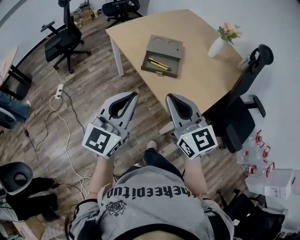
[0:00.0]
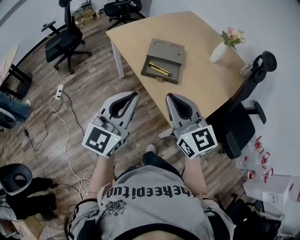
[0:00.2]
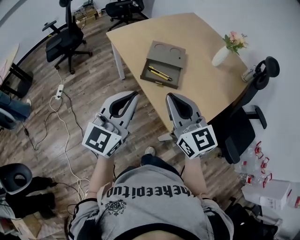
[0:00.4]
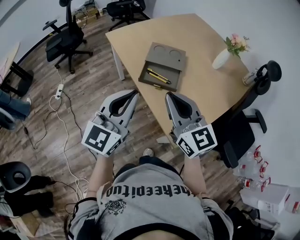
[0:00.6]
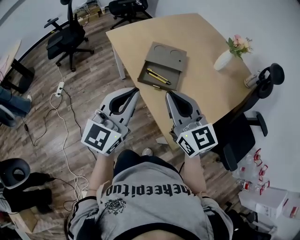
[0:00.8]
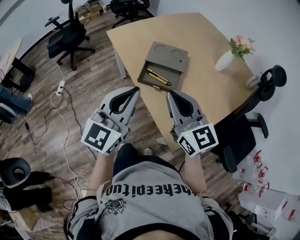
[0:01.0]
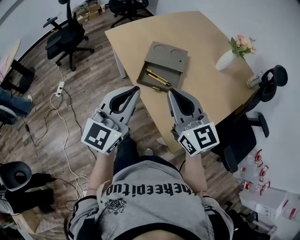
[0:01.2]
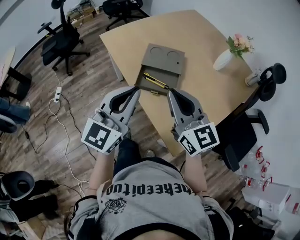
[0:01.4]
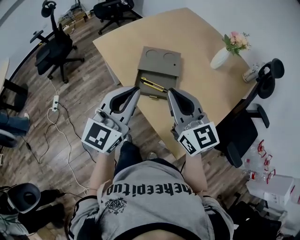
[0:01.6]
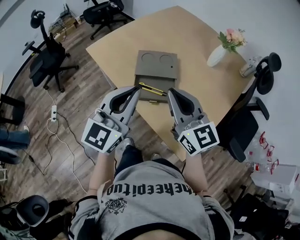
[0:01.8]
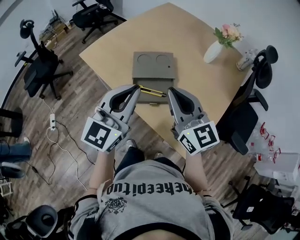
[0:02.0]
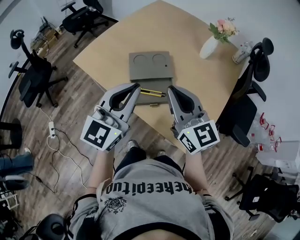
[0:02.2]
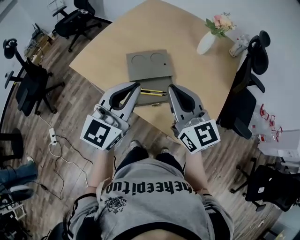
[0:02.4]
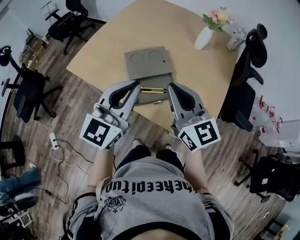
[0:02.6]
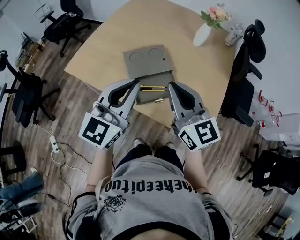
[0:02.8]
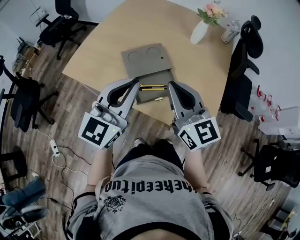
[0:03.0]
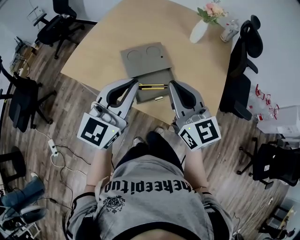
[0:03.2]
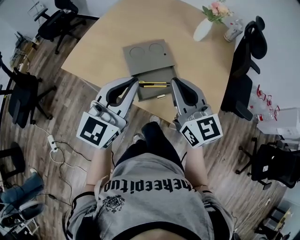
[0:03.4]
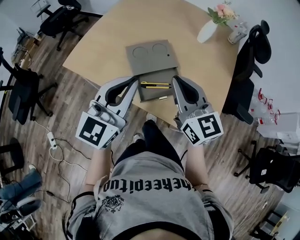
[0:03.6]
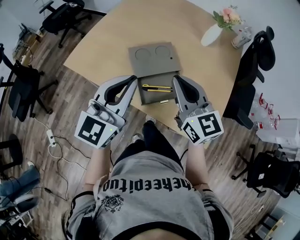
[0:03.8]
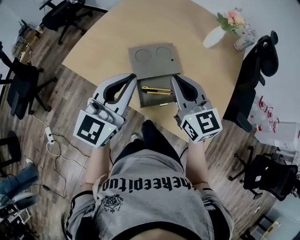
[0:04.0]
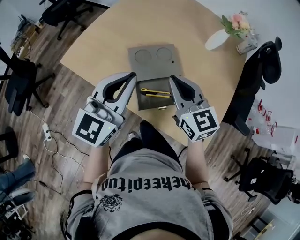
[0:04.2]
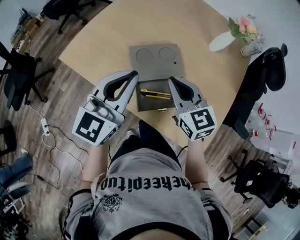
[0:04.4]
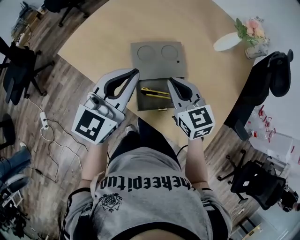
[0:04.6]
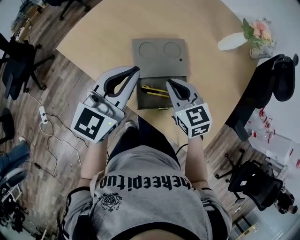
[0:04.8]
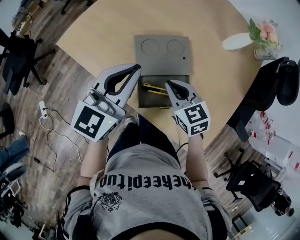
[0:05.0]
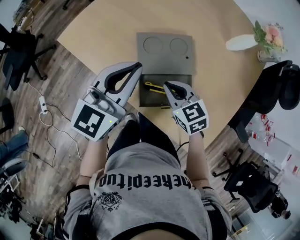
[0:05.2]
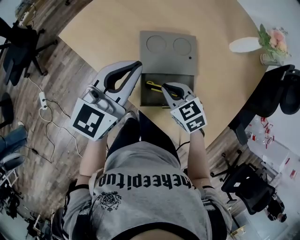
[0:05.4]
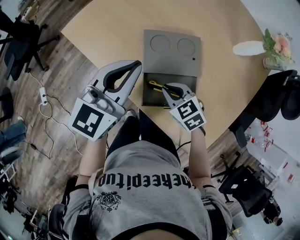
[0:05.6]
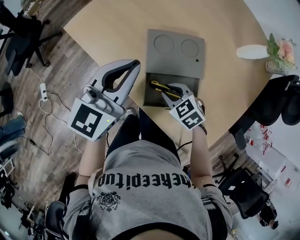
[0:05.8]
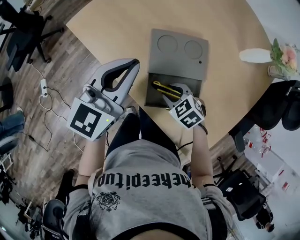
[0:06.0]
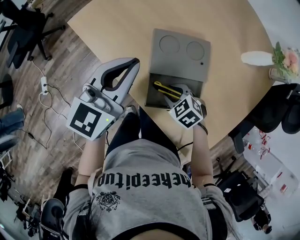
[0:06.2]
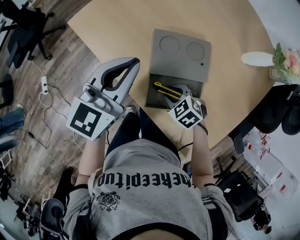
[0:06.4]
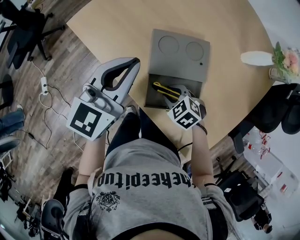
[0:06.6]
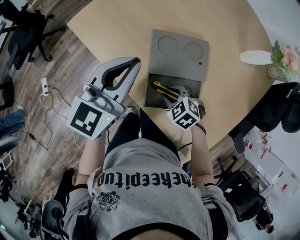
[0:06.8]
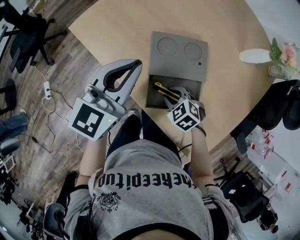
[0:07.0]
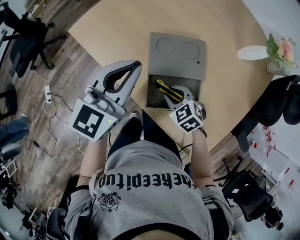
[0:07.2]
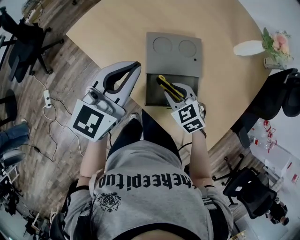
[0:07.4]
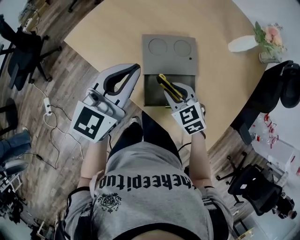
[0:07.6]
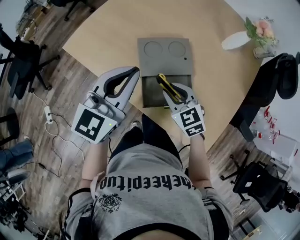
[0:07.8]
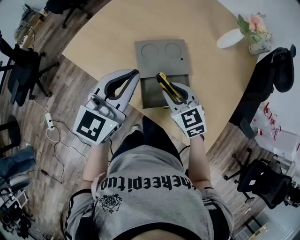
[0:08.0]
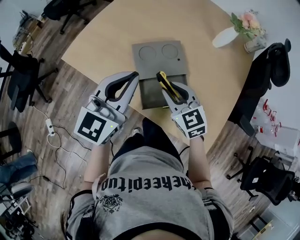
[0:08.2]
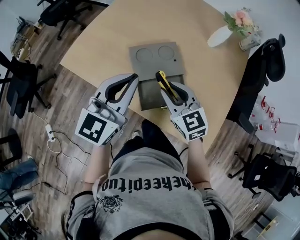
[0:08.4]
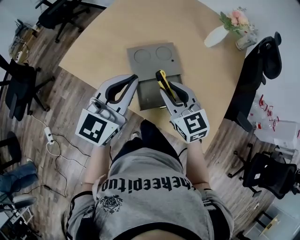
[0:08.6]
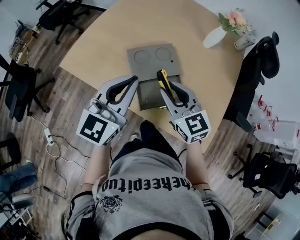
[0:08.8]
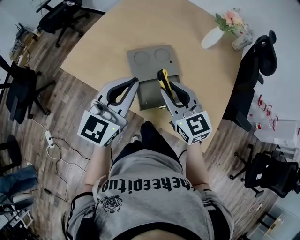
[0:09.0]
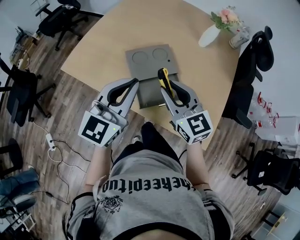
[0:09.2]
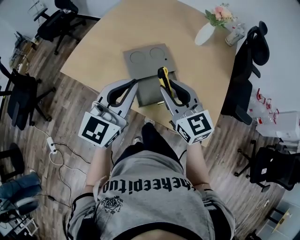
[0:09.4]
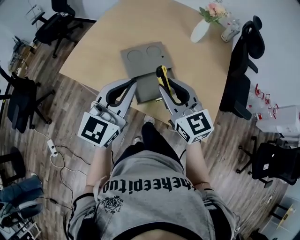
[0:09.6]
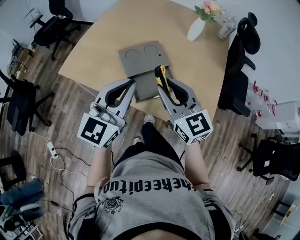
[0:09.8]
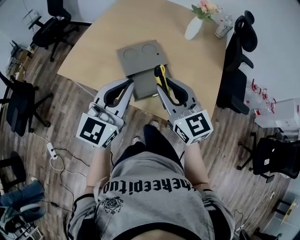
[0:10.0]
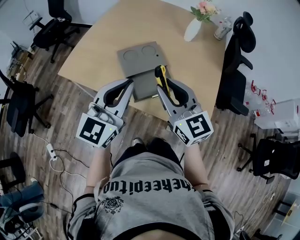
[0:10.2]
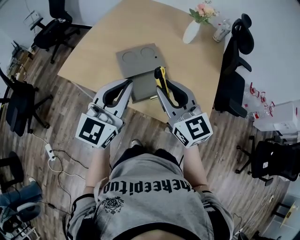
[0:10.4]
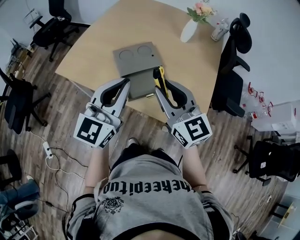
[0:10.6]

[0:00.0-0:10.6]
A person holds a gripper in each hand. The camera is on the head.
0:00.0 to 0:01.6: Both grippers travel together forward, approximately 20 cm.
0:01.6 to 0:03.0: The right gripper shifts by some 10 cm, and changes its angle by some 30 degrees; the left gripper moves roughly 15 cm, and rotates approximately 30 degrees.
0:03.0 to 0:04.6: The right gripper shifts approximately 20 cm forward and downward, and rotates approximately 30 degrees. The left gripper moves forward, some 10 cm.
0:04.6 to 0:06.0: The left gripper travels downward by roughly 5 cm. The right gripper heads downward, covering about 20 cm, tilts its fingers approximately 30 degrees downward, and opens up.
0:06.0 to 0:07.6: The right gripper goes some 5 cm upward, and rotates some 20 degrees.
0:07.6 to 0:09.0: The right gripper is displaced upward by approximately 15 cm, and swivels about 30 degrees. Meanwhile the left gripper travels backward by about 5 cm.
0:09.0 to 0:10.6: The right gripper is displaced backward and upward by some 10 cm, while the left gripper travels backward by some 10 cm.

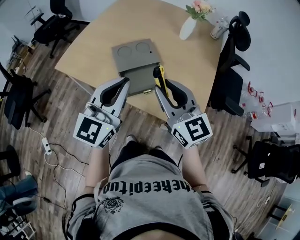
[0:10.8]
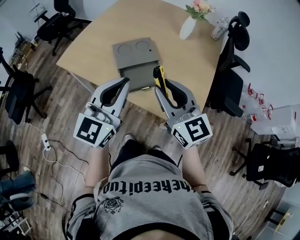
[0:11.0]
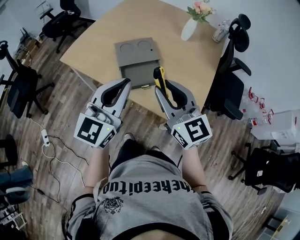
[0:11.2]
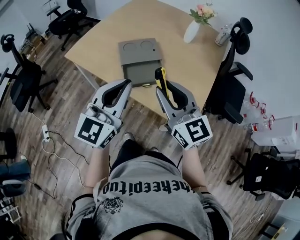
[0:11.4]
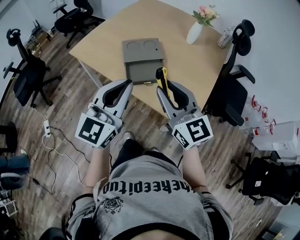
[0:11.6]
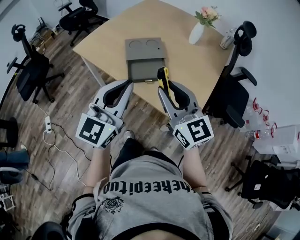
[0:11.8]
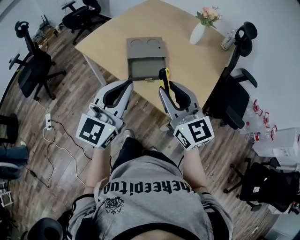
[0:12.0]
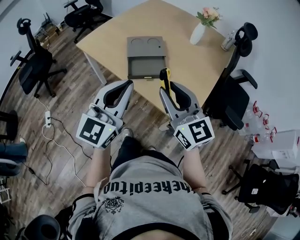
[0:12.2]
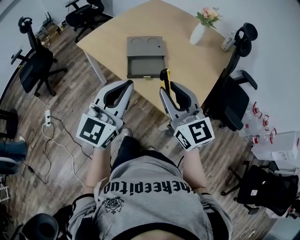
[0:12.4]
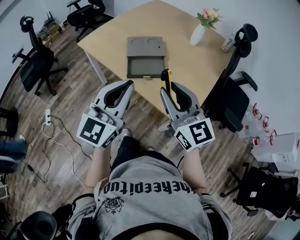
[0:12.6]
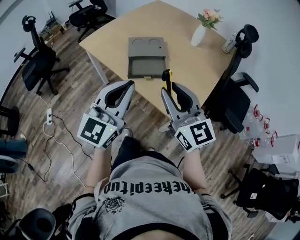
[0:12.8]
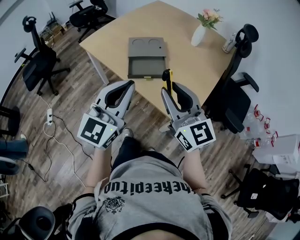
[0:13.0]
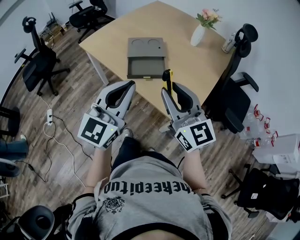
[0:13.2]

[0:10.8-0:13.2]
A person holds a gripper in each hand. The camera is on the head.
0:10.8 to 0:12.0: Both grippers travel together backward, approximately 10 cm.
0:12.0 to 0:13.2: The grippers stay close to where they were, moving slightly.

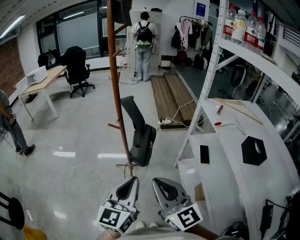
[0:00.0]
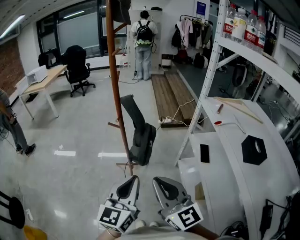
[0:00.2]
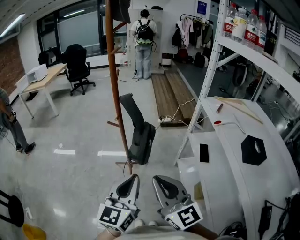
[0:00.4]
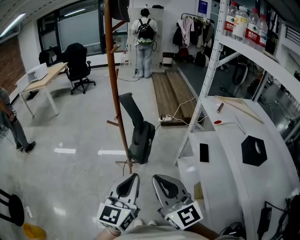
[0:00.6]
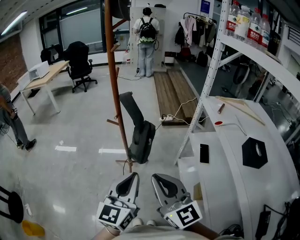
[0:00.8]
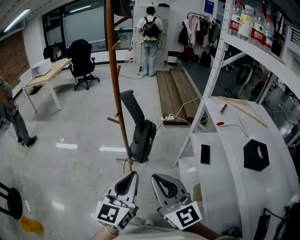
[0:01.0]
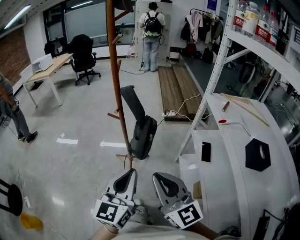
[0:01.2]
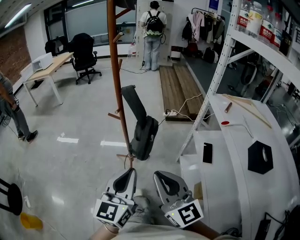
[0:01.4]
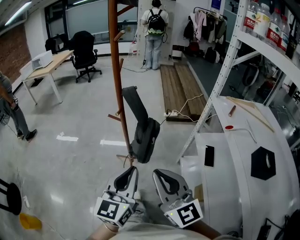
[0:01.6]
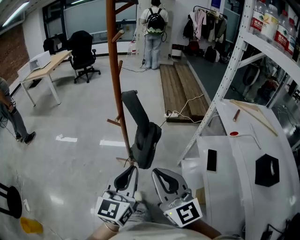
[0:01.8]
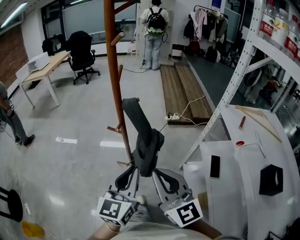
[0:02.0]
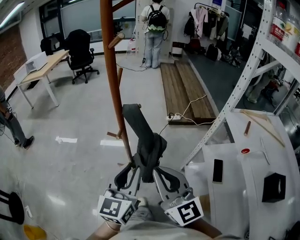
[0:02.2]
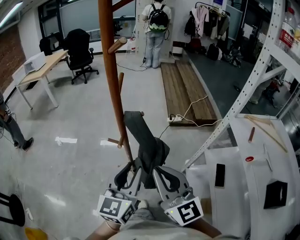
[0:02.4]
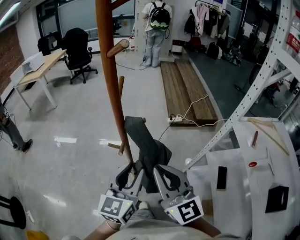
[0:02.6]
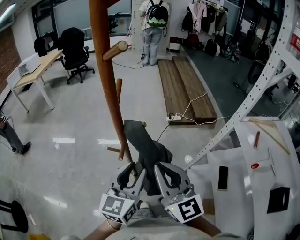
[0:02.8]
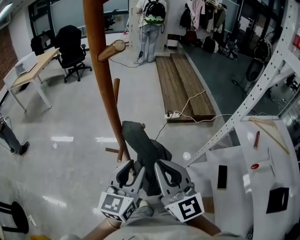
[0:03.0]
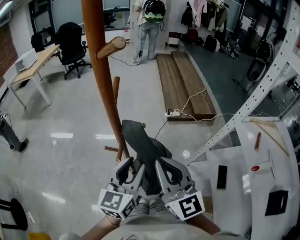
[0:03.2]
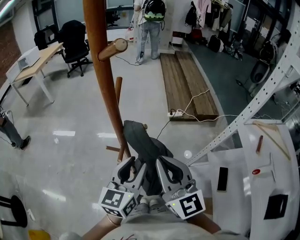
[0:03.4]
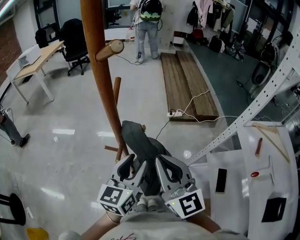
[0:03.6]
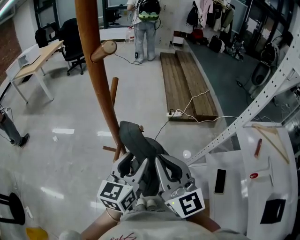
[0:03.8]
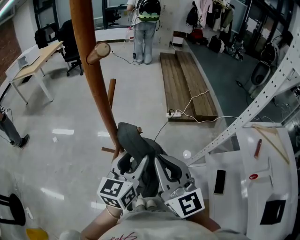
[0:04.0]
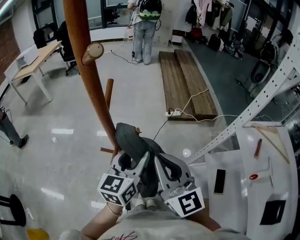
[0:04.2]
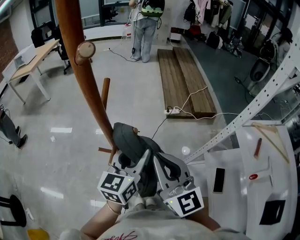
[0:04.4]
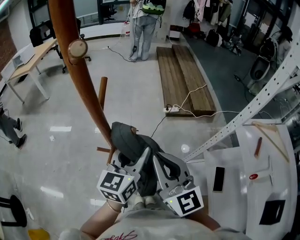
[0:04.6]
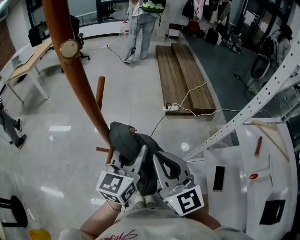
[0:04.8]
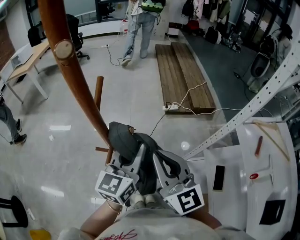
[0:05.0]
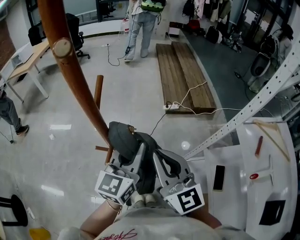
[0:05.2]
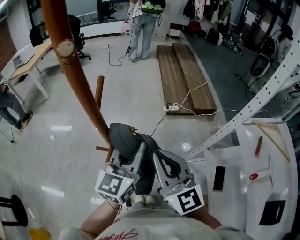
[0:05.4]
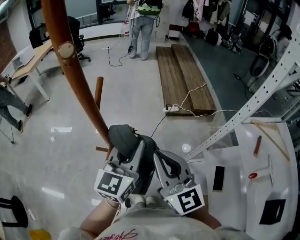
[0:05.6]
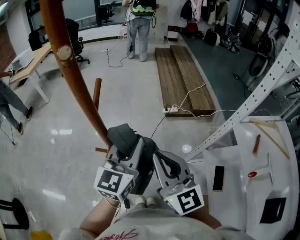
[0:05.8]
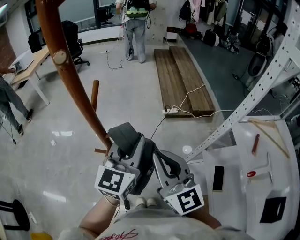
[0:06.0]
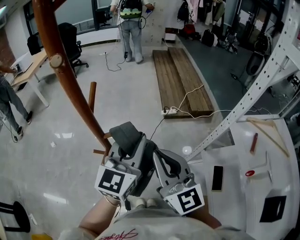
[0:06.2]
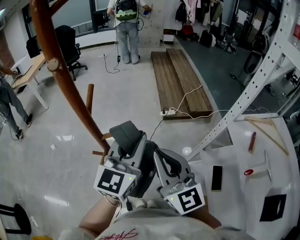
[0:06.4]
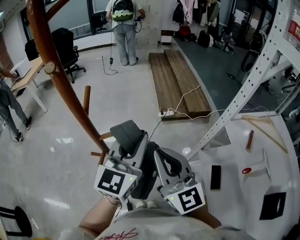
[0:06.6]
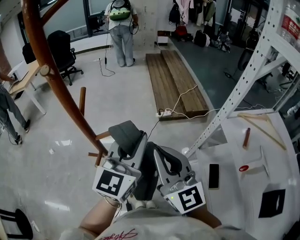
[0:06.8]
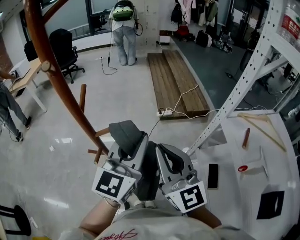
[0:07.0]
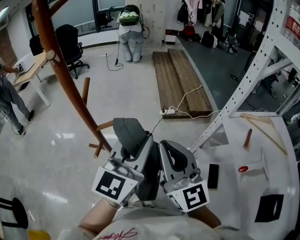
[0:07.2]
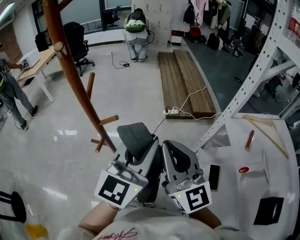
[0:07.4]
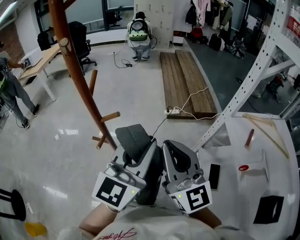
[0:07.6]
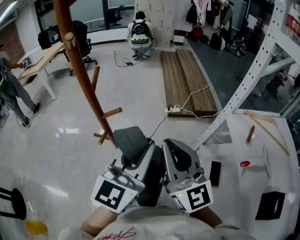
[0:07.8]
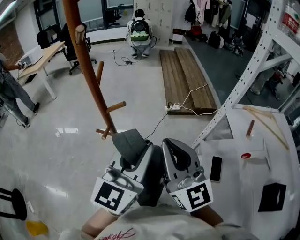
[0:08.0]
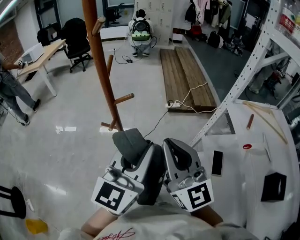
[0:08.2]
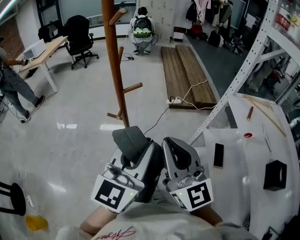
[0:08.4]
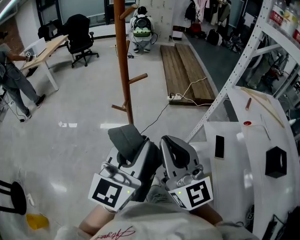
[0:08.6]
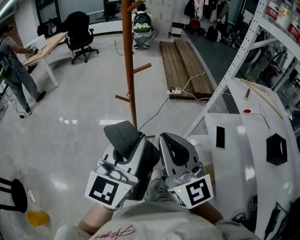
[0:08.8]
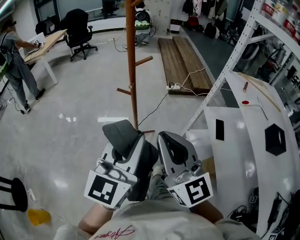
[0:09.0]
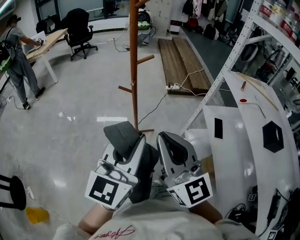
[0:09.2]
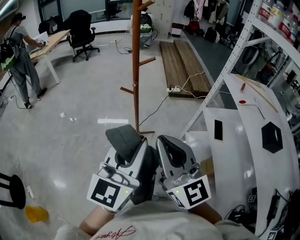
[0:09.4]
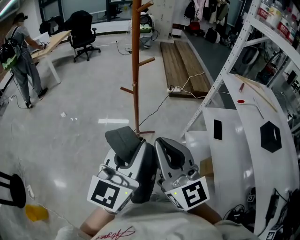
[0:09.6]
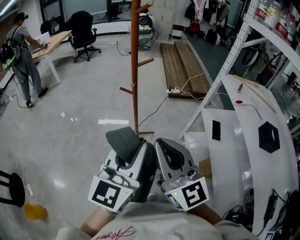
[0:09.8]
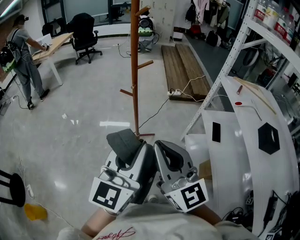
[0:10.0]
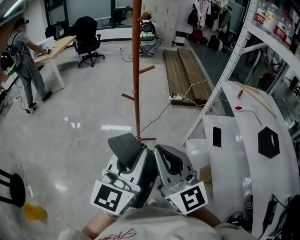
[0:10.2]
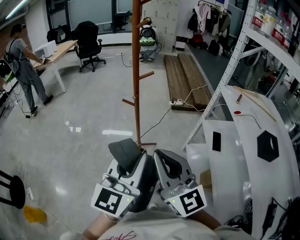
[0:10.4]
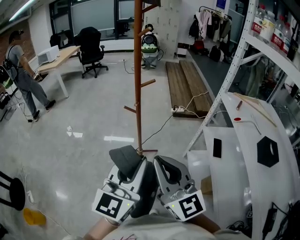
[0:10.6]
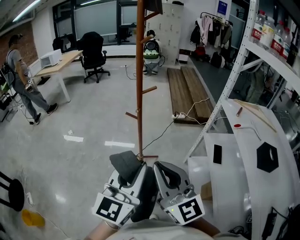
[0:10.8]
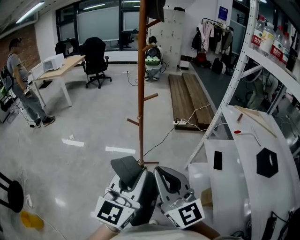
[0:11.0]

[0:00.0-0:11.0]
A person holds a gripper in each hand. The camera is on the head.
0:00.0 to 0:01.6: Both grippers move forward, some 5 cm.
0:01.6 to 0:03.2: Both grippers move forward, some 25 cm. The left gripper opens.
0:03.2 to 0:04.8: The right gripper ends up some 5 cm from where it was. The left gripper travels forward by some 5 cm.
0:04.8 to 0:06.2: The left gripper travels upward by some 5 cm.
0:06.2 to 0:07.8: The right gripper moves backward, about 5 cm. Meanwhile the left gripper goes approximately 10 cm backward.
0:07.8 to 0:09.4: The grippers both shift backward and to the left by about 30 cm.
0:09.4 to 0:11.0: There are only small adjustments of the grippers.
